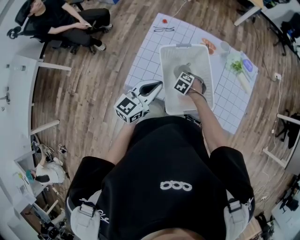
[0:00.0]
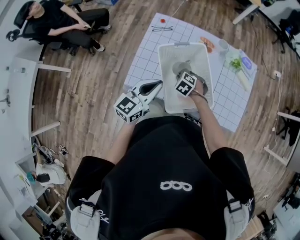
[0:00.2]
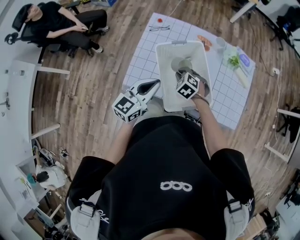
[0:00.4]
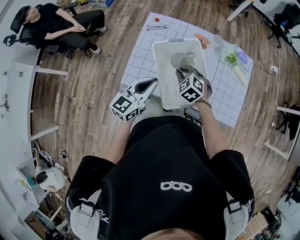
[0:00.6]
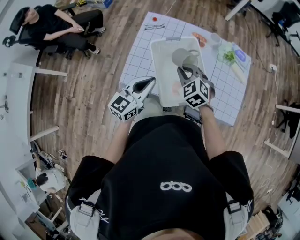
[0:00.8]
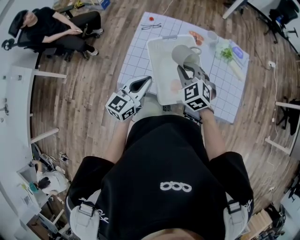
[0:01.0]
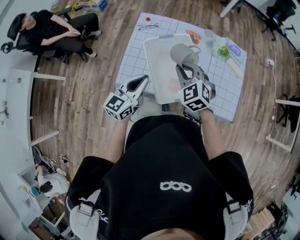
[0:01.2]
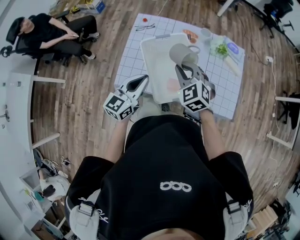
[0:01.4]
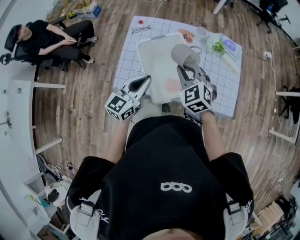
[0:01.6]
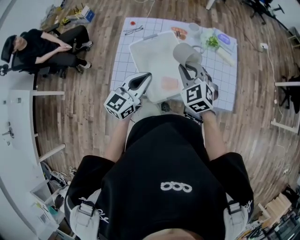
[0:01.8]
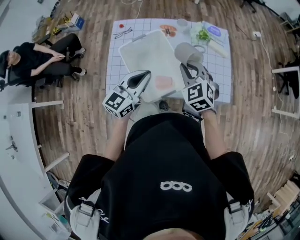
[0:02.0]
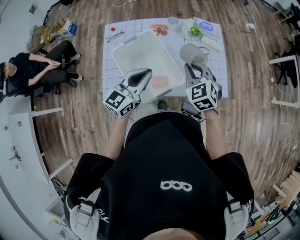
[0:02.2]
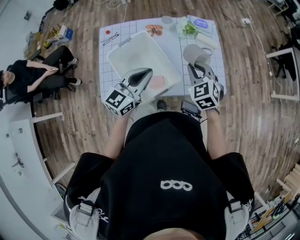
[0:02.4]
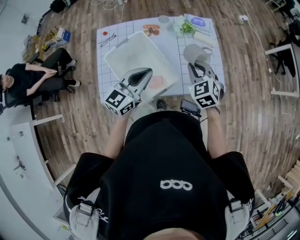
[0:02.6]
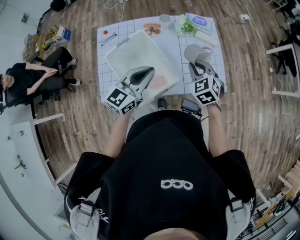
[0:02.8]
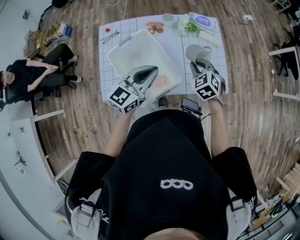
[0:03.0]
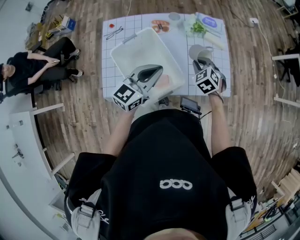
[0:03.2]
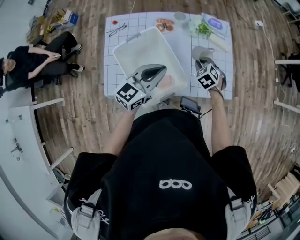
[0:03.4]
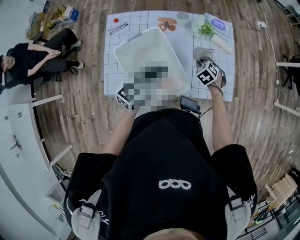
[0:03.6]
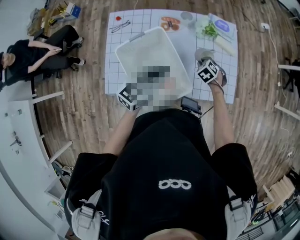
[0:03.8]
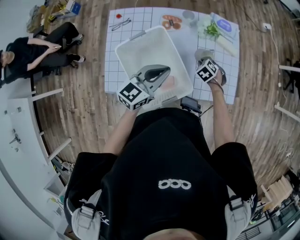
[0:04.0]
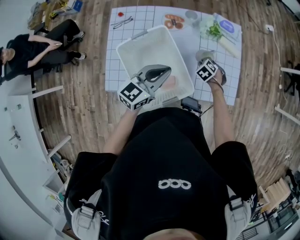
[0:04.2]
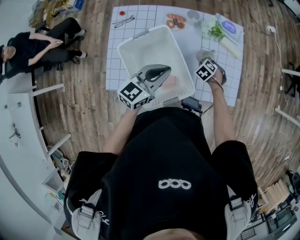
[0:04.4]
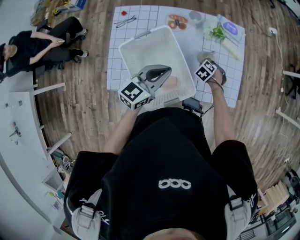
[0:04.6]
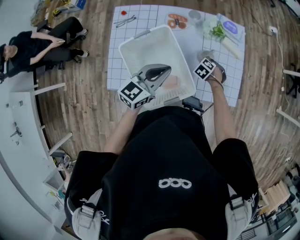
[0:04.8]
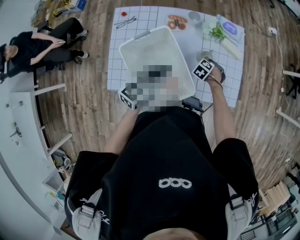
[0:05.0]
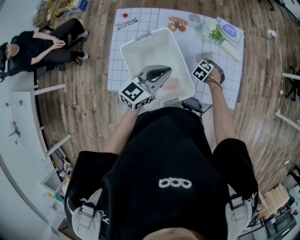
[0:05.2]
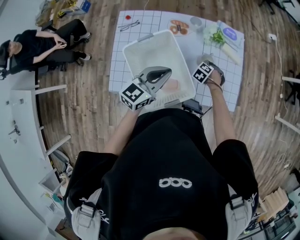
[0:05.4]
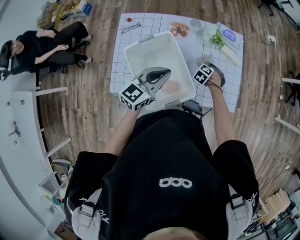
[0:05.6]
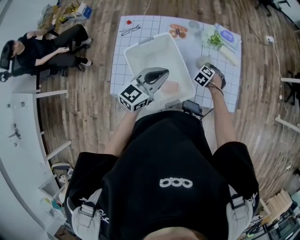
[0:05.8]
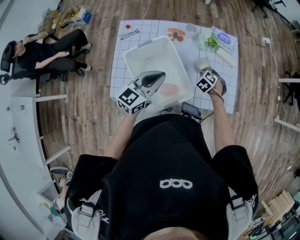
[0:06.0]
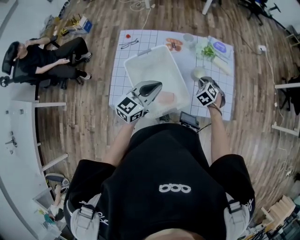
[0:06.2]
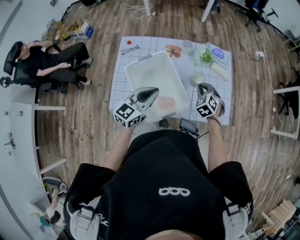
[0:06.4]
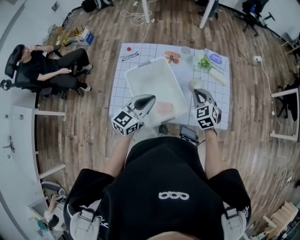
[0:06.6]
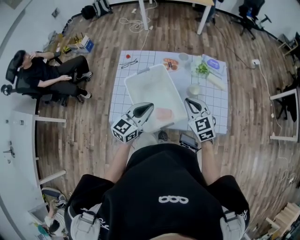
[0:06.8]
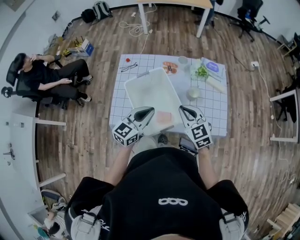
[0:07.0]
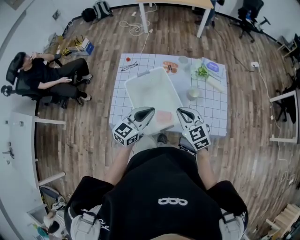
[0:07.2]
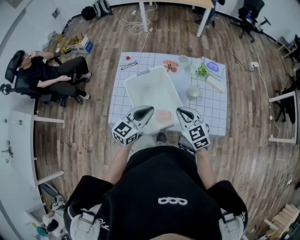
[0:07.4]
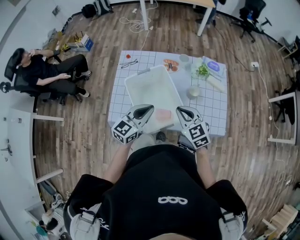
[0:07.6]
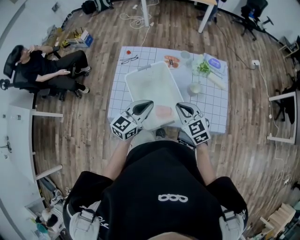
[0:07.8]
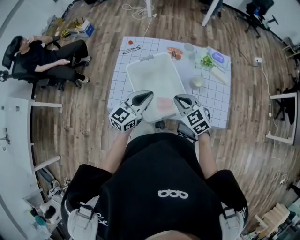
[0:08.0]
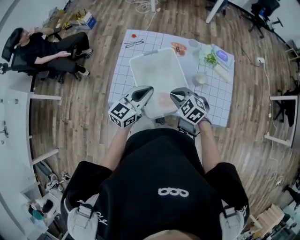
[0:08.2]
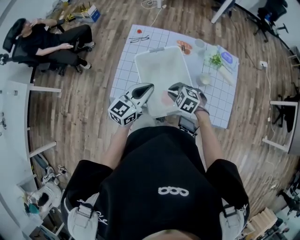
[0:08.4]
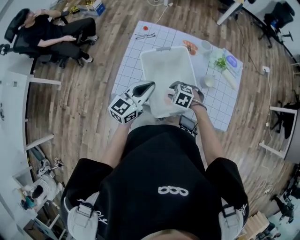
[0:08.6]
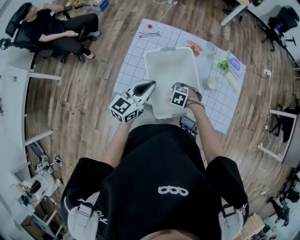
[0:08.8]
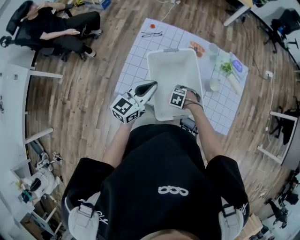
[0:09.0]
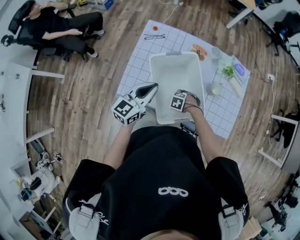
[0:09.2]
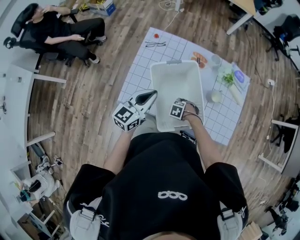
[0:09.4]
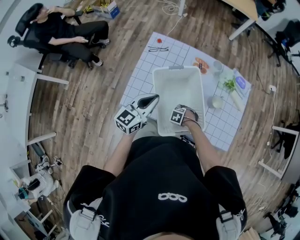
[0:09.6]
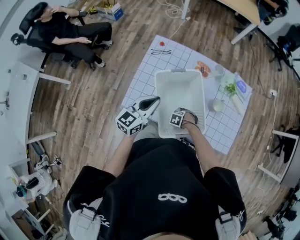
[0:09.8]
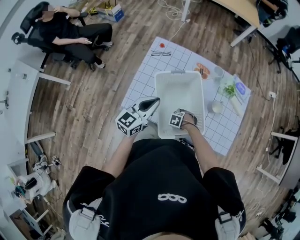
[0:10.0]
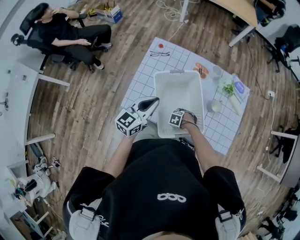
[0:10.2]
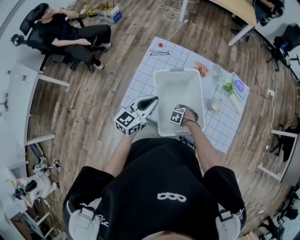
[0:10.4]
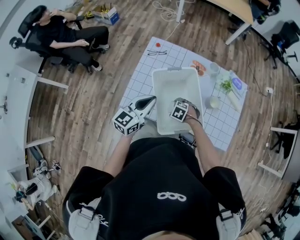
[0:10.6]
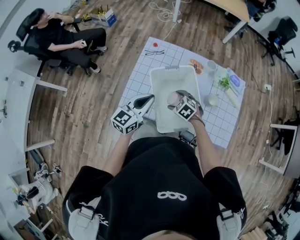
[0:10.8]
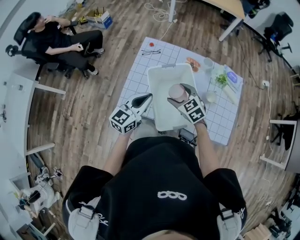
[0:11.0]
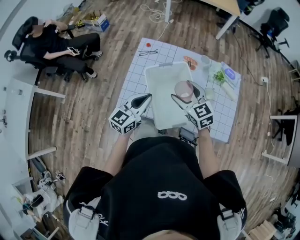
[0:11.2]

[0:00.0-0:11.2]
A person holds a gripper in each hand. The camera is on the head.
0:00.0 to 0:01.6: The right gripper heads upward, covering about 25 cm, and tips its fingers upward by about 40 degrees, while the left gripper changes place by about 5 cm.
0:01.6 to 0:03.2: The left gripper is displaced to the right and forward by approximately 15 cm, and changes its angle by roughly 20 degrees. Meanwhile the right gripper heads to the right, downward and forward, covering approximately 25 cm, and swivels roughly 30 degrees.
0:03.2 to 0:04.8: The left gripper ends up some 5 cm from where it was. Meanwhile the right gripper is displaced downward by about 20 cm, and rotates roughly 30 degrees.
0:04.8 to 0:06.4: The left gripper ends up about 5 cm from where it was. The right gripper shifts roughly 20 cm upward, and points its fingers about 30 degrees further upward.
0:06.4 to 0:08.0: The right gripper is displaced to the left, backward and upward by about 20 cm, and rotates approximately 30 degrees.
0:08.0 to 0:09.6: The right gripper goes about 30 cm downward, tilts its fingers some 40 degrees downward, and opens up; the left gripper shifts by about 10 cm.
0:09.6 to 0:11.2: The right gripper is displaced upward by about 35 cm, and angles its fingers upward, by roughly 50 degrees.

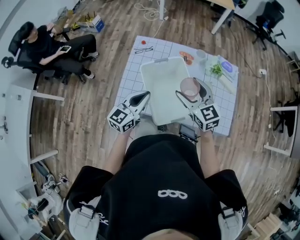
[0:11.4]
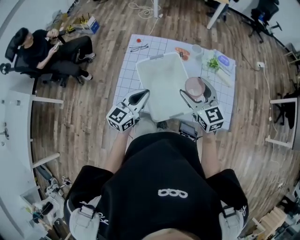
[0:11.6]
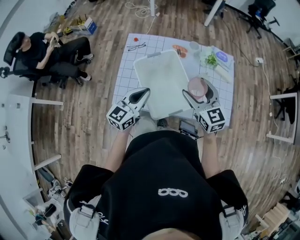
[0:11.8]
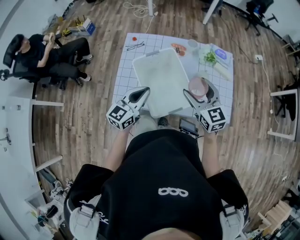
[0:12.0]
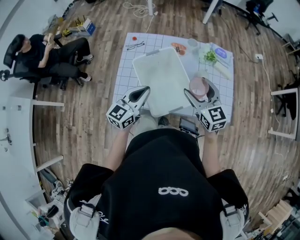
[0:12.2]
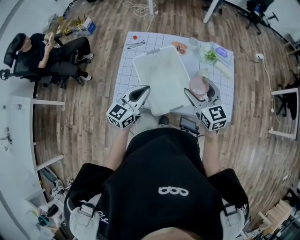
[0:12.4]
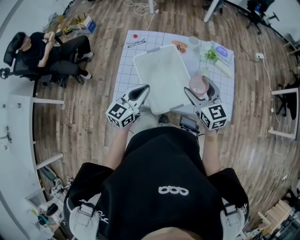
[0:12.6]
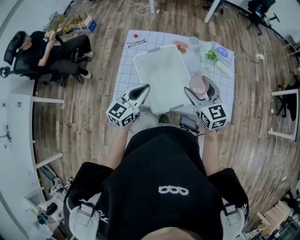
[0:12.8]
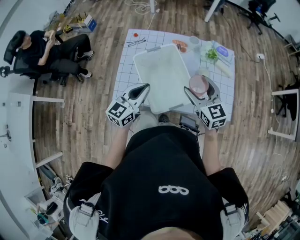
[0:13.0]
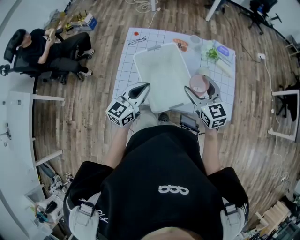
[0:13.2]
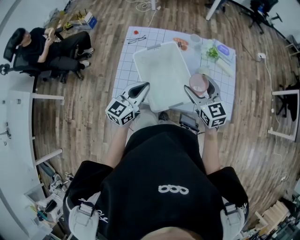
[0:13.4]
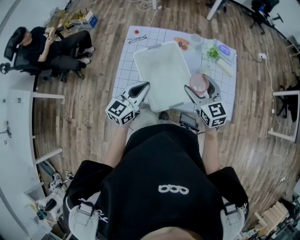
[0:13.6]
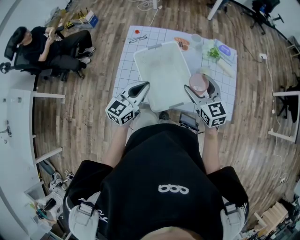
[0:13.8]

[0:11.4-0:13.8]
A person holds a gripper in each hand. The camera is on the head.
0:11.4 to 0:12.6: The right gripper is displaced to the right by approximately 5 cm.
0:12.6 to 0:13.8: The grippers make only small movements.

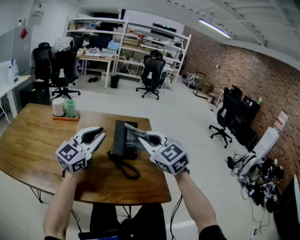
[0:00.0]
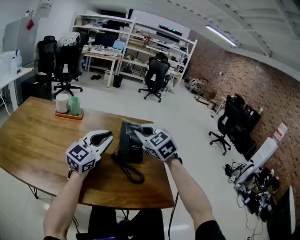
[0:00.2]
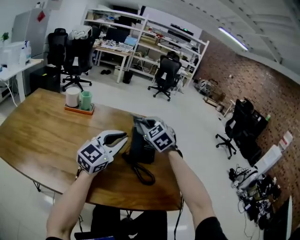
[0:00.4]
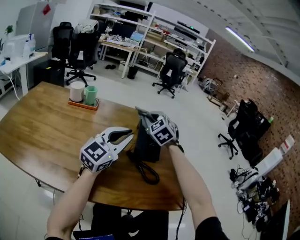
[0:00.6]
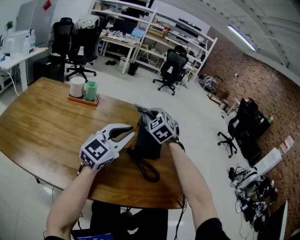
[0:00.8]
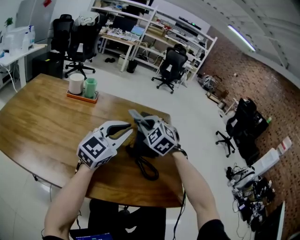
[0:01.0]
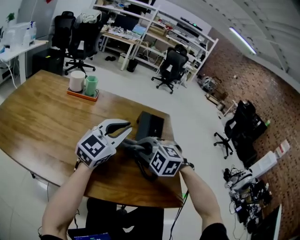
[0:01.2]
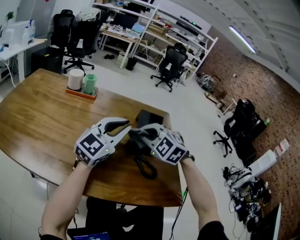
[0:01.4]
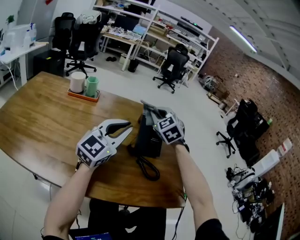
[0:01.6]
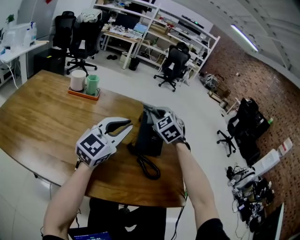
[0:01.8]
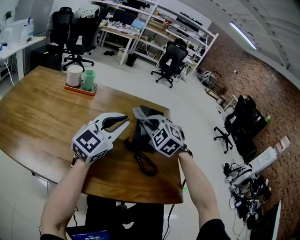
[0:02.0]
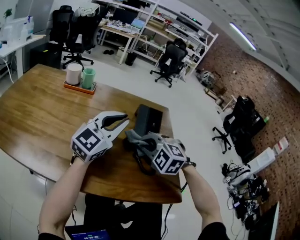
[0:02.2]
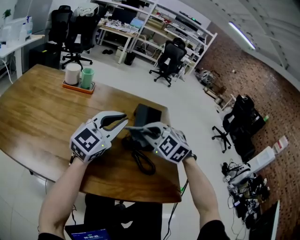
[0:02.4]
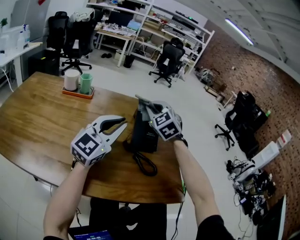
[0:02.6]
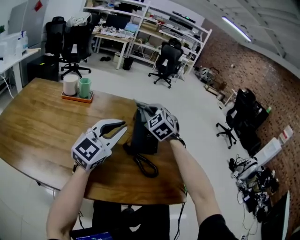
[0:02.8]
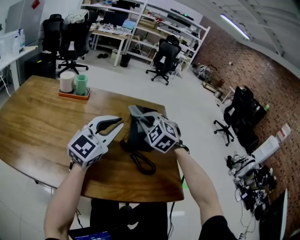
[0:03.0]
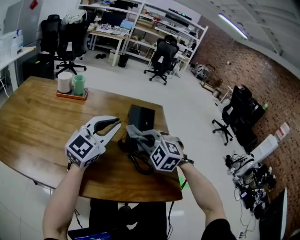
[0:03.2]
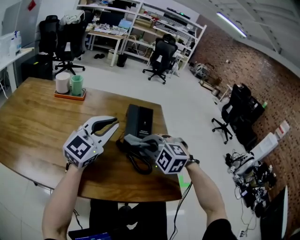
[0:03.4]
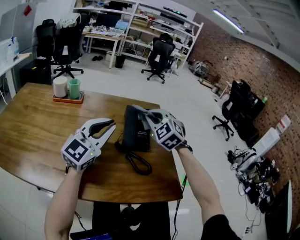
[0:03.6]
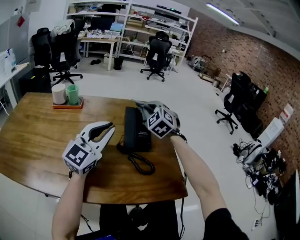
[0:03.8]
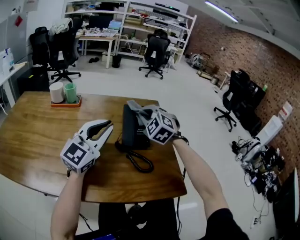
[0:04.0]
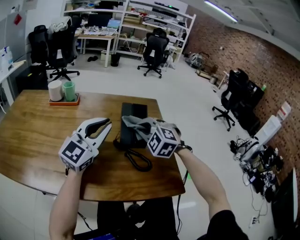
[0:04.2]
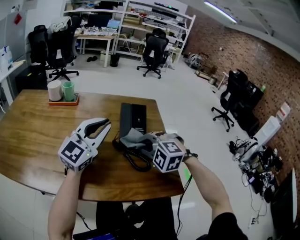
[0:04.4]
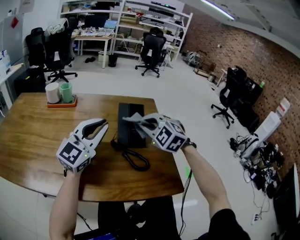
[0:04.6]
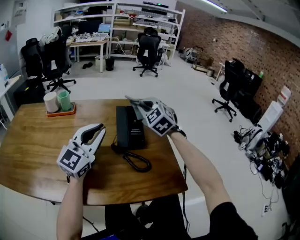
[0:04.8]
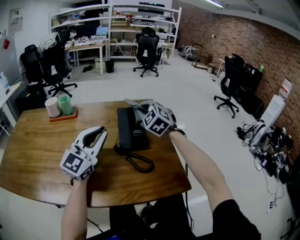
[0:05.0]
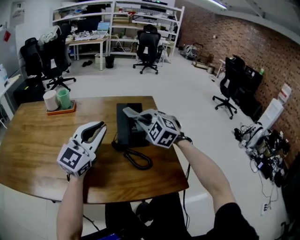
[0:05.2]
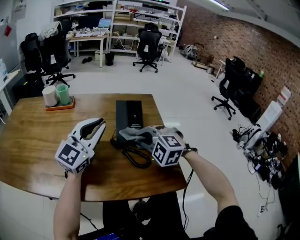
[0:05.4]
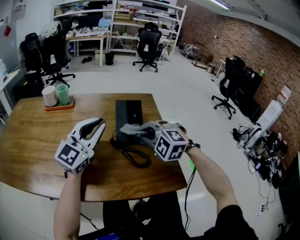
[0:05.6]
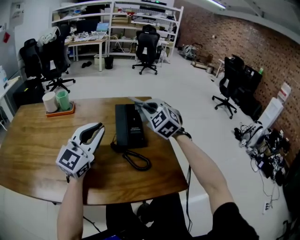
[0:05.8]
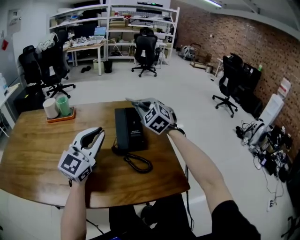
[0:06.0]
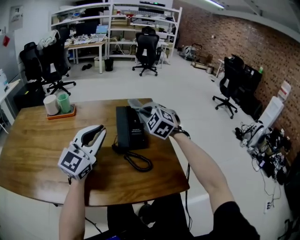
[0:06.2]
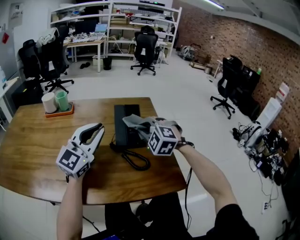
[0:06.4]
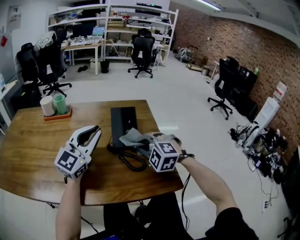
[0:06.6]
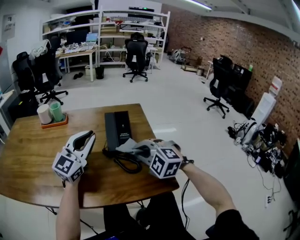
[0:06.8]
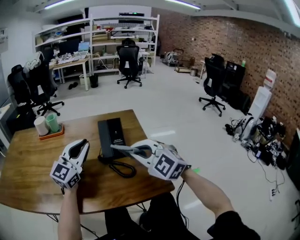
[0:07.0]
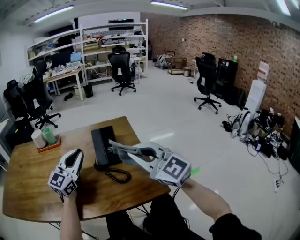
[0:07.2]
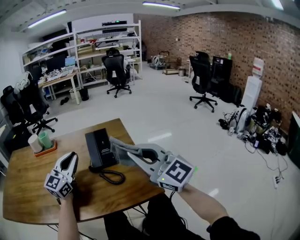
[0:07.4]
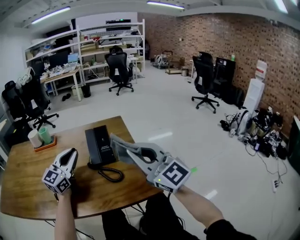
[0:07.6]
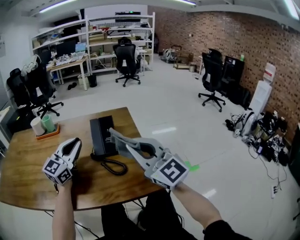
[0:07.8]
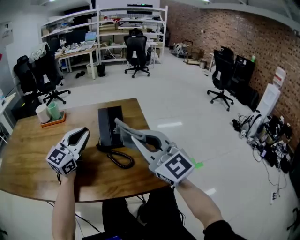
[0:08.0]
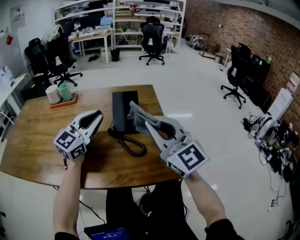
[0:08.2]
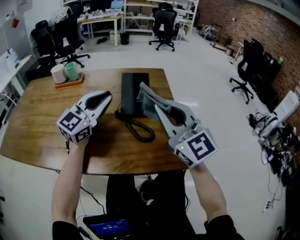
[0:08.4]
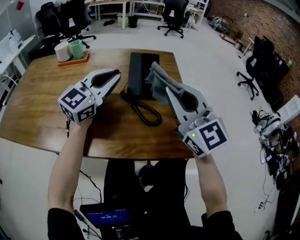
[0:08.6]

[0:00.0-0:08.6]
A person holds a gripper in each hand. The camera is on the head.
0:00.0 to 0:01.4: The right gripper moves forward and backward over roughly 20 cm, changing direction 2 times, and rotates about 30 degrees.
0:01.4 to 0:02.8: The right gripper moves forward and backward over approximately 15 cm, changing direction 2 times, and changes its angle by roughly 20 degrees.
0:02.8 to 0:04.4: The right gripper swings forward and backward, roughly 20 cm each way, with 2 reversals, and rotates about 30 degrees.
0:04.4 to 0:05.8: The right gripper moves forward and backward over approximately 15 cm, changing direction 2 times, and changes its angle by about 40 degrees.
0:05.8 to 0:07.2: The right gripper goes about 25 cm backward, and turns by approximately 40 degrees.
0:07.2 to 0:08.6: The left gripper moves to the right, about 5 cm.

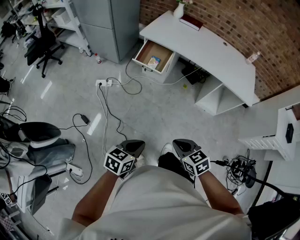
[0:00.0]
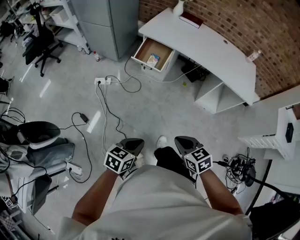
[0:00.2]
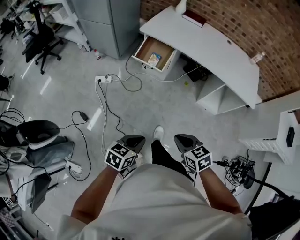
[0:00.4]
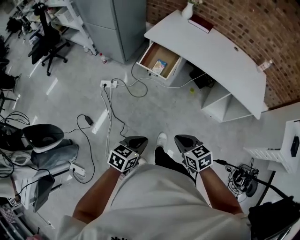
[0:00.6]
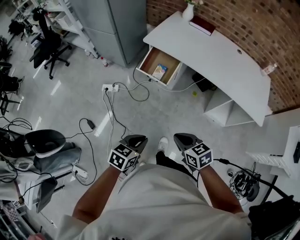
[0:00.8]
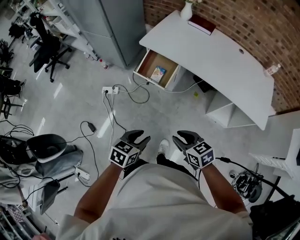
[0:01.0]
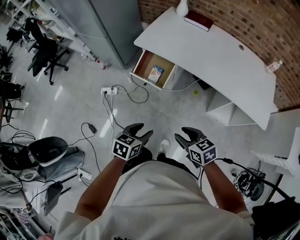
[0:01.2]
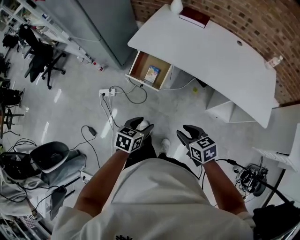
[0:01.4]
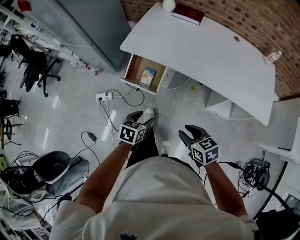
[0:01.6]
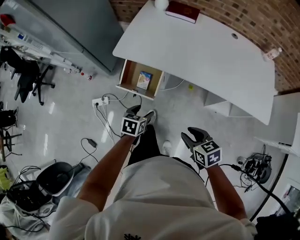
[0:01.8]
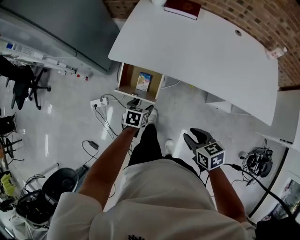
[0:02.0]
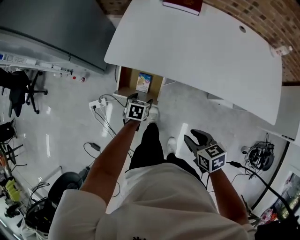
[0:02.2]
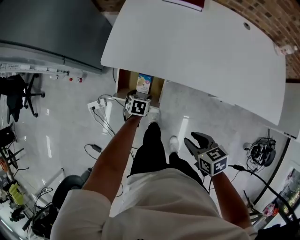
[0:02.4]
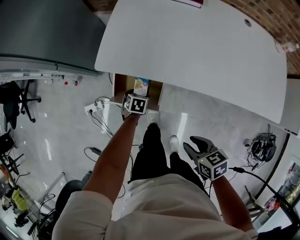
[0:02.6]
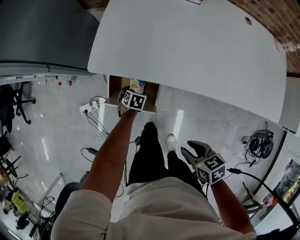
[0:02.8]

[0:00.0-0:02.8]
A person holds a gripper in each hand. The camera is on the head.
0:00.0 to 0:01.4: The two grippers go approximately 40 cm forward. The right gripper opens, while the left gripper opens up.
0:01.4 to 0:02.8: The right gripper moves forward and downward, some 25 cm, and swivels some 30 degrees. The left gripper travels forward and downward by some 60 cm, and turns by about 30 degrees.
